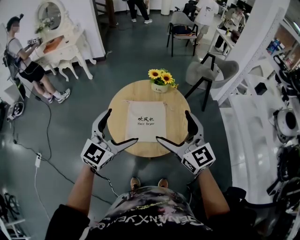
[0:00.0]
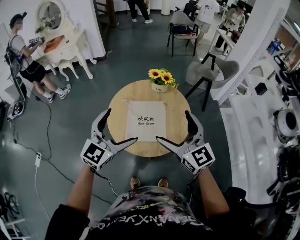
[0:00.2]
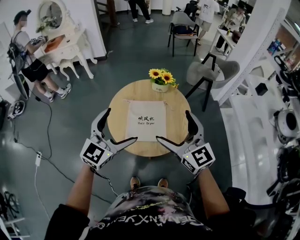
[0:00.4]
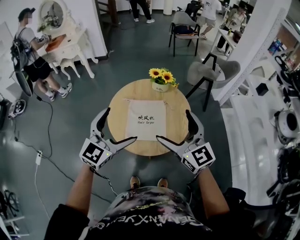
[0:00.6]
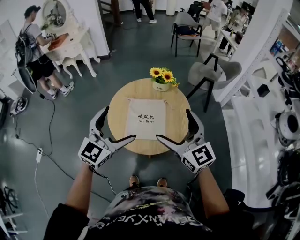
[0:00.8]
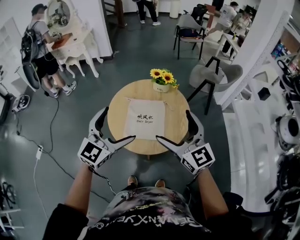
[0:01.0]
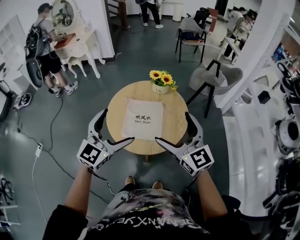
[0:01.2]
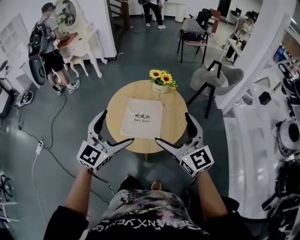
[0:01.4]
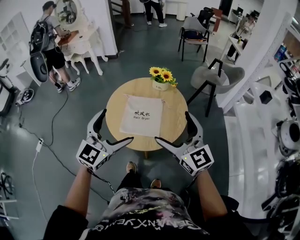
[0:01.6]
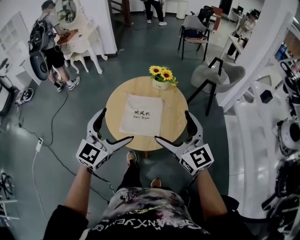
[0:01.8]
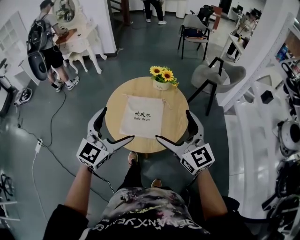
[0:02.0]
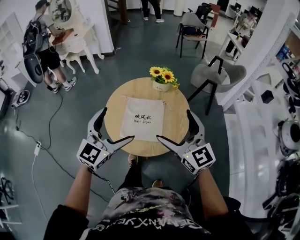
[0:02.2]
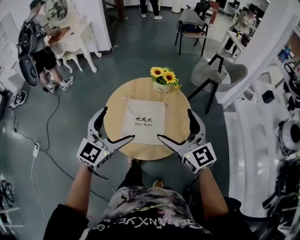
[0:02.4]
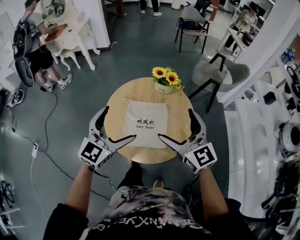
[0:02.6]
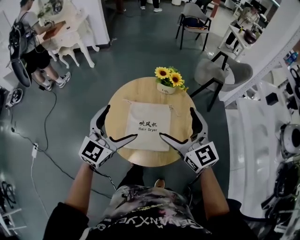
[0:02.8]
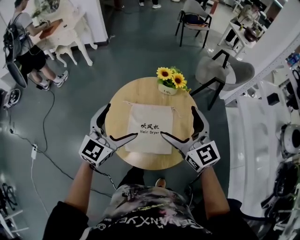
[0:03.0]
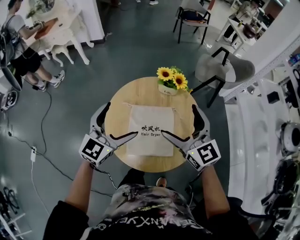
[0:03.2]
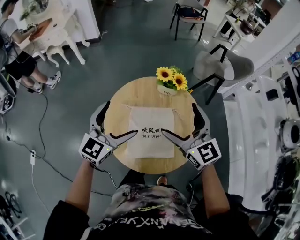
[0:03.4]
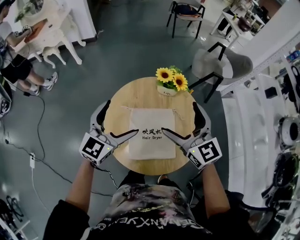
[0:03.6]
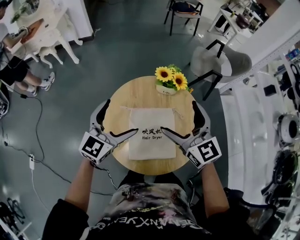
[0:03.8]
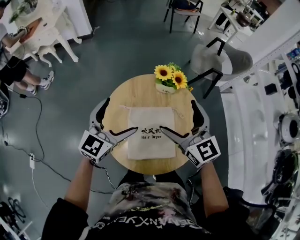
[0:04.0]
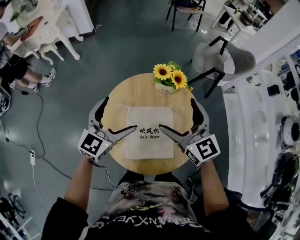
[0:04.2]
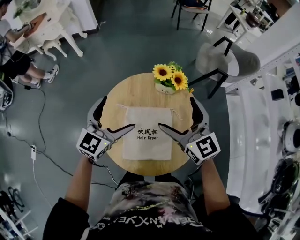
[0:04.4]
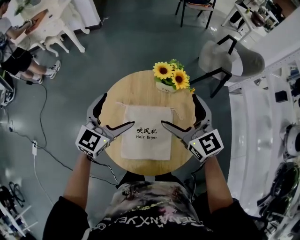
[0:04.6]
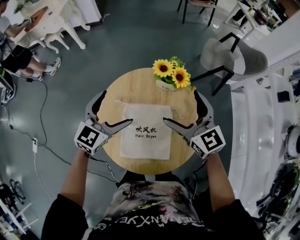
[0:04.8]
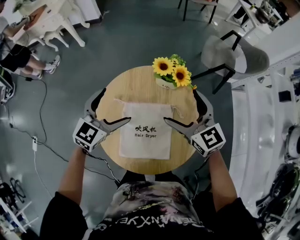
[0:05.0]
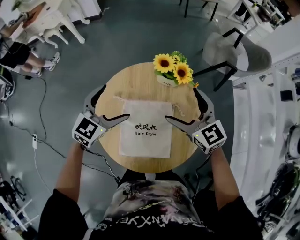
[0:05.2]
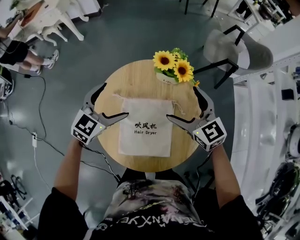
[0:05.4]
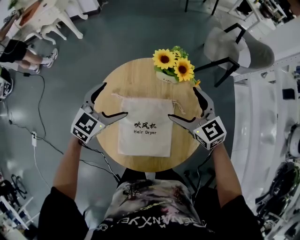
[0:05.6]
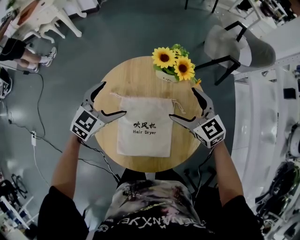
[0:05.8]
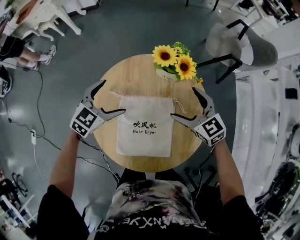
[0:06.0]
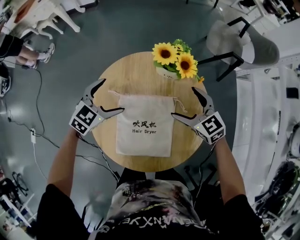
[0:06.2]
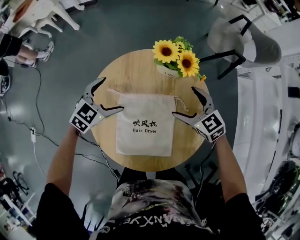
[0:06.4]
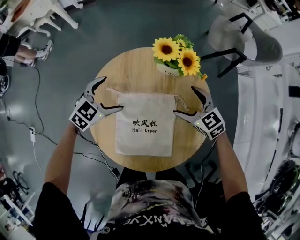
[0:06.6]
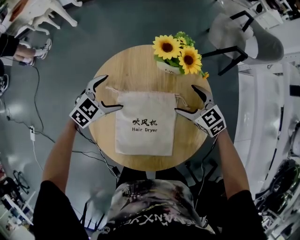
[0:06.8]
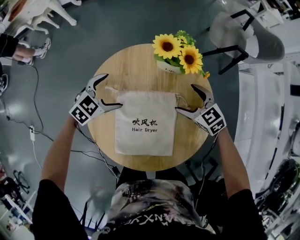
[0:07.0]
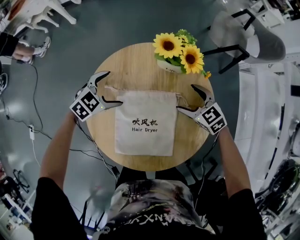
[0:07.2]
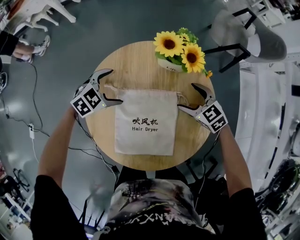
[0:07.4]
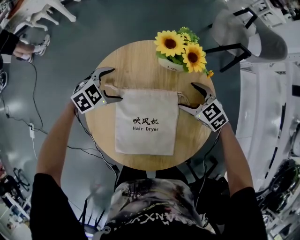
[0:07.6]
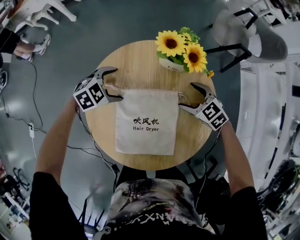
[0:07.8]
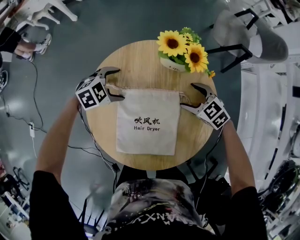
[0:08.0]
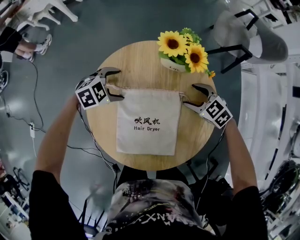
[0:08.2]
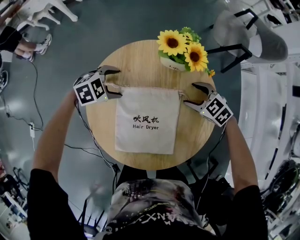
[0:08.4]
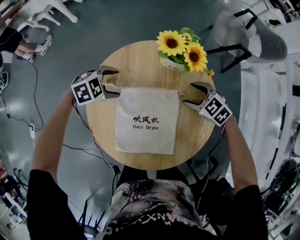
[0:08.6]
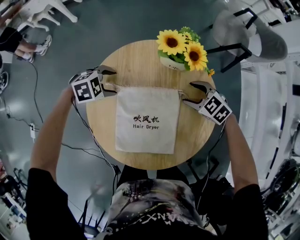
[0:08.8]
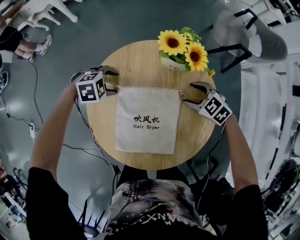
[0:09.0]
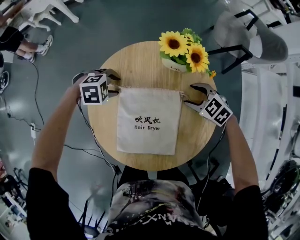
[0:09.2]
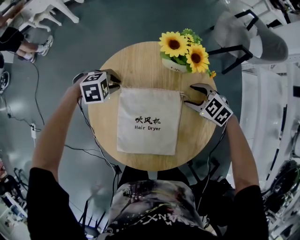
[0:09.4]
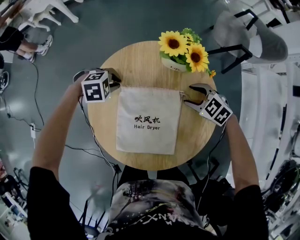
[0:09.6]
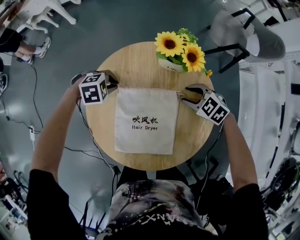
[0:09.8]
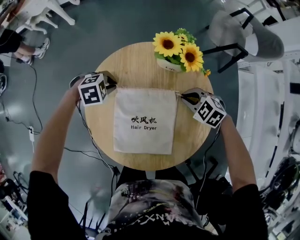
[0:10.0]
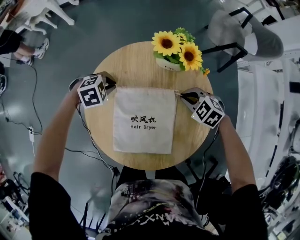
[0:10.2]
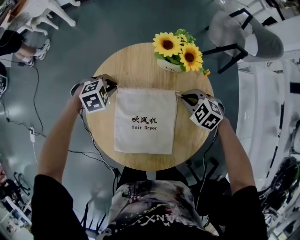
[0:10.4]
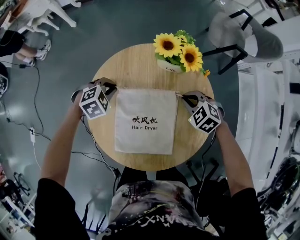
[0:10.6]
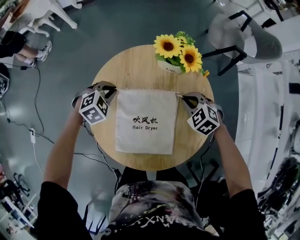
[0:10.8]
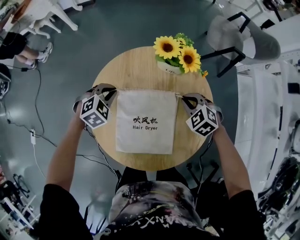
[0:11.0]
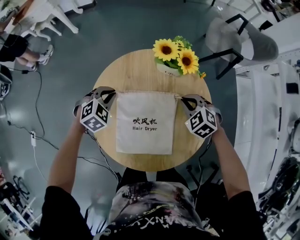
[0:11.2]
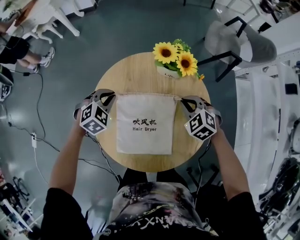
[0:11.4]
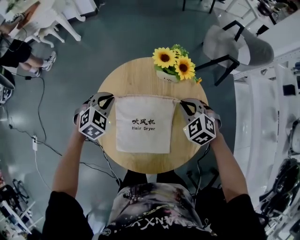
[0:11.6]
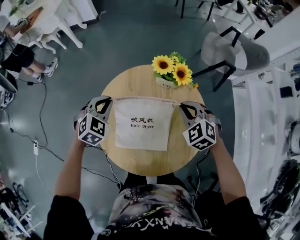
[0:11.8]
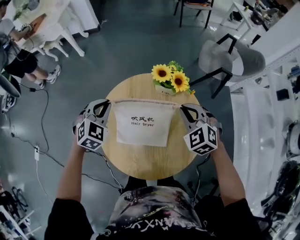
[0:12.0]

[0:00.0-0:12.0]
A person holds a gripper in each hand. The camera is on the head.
0:00.0 to 0:01.6: The right gripper goes roughly 5 cm to the right. Meanwhile the left gripper travels backward by some 5 cm.
0:01.6 to 0:03.0: The grippers both shift forward by some 20 cm.
0:03.0 to 0:04.4: The left gripper travels forward and downward by approximately 15 cm, while the right gripper travels forward by roughly 10 cm.
0:04.4 to 0:06.0: Both grippers travel together downward, some 15 cm. The left gripper changes its angle by roughly 30 degrees; the right gripper changes its angle by roughly 20 degrees.
0:06.0 to 0:07.6: The two grippers go approximately 10 cm downward. The left gripper changes its angle by about 30 degrees.
0:07.6 to 0:09.0: The left gripper changes its angle by approximately 20 degrees, and closes its fingers.
0:09.0 to 0:10.4: The left gripper closes its fingers, while the right gripper closes its fingers.
0:10.4 to 0:12.0: Both grippers move upward, some 20 cm. The left gripper tilts its fingers roughly 30 degrees upward. Meanwhile the right gripper turns by approximately 30 degrees.

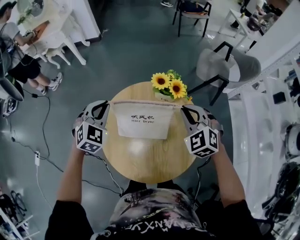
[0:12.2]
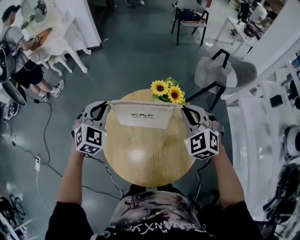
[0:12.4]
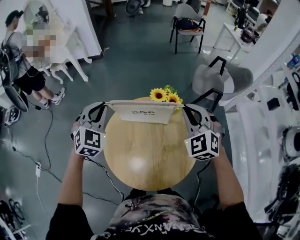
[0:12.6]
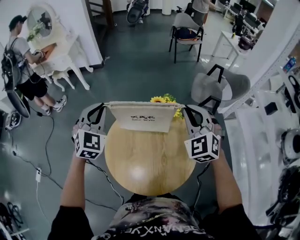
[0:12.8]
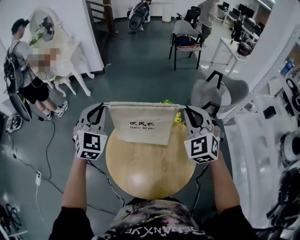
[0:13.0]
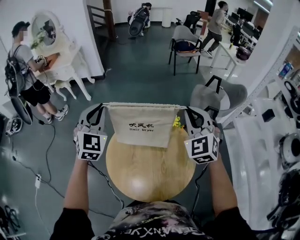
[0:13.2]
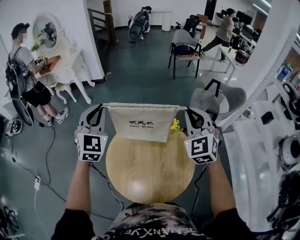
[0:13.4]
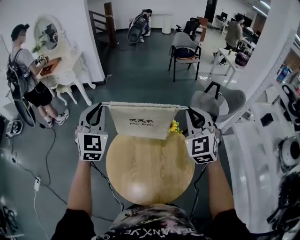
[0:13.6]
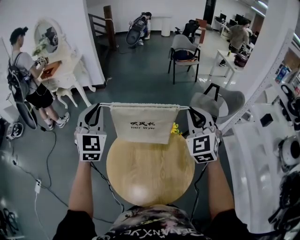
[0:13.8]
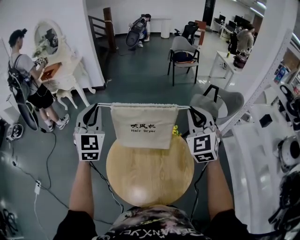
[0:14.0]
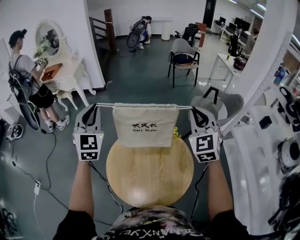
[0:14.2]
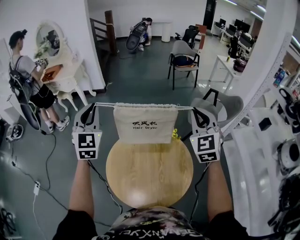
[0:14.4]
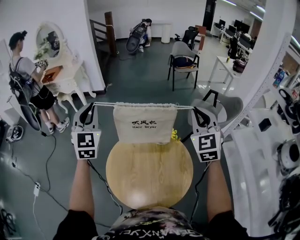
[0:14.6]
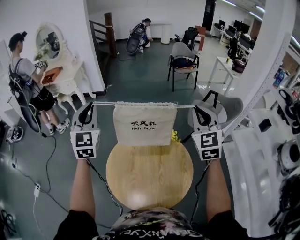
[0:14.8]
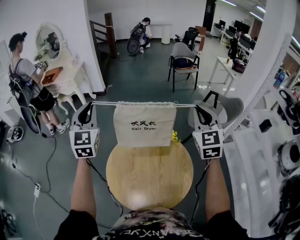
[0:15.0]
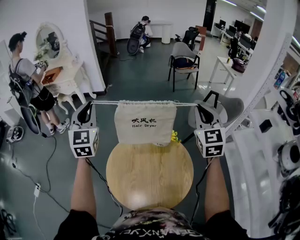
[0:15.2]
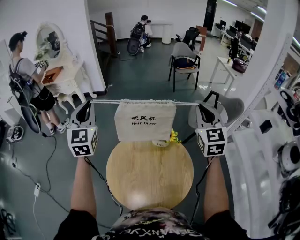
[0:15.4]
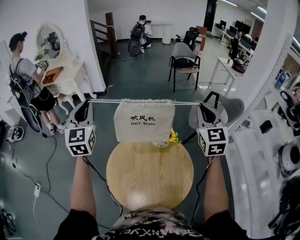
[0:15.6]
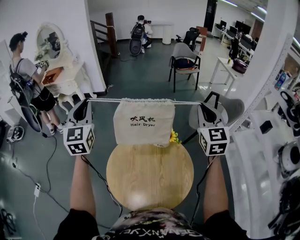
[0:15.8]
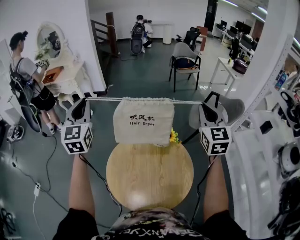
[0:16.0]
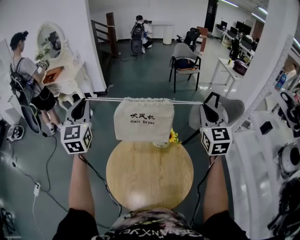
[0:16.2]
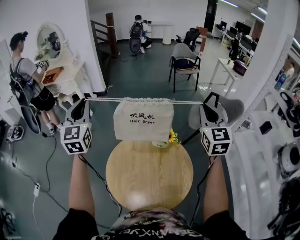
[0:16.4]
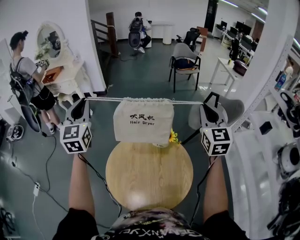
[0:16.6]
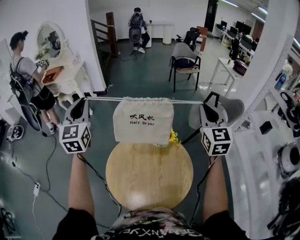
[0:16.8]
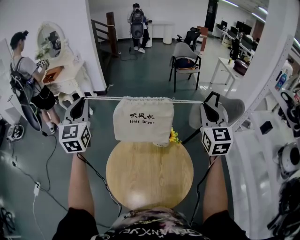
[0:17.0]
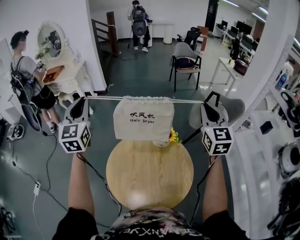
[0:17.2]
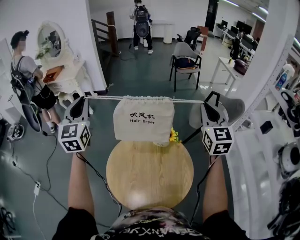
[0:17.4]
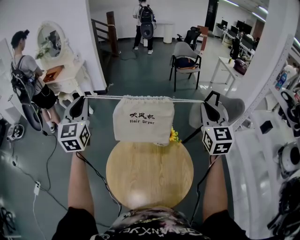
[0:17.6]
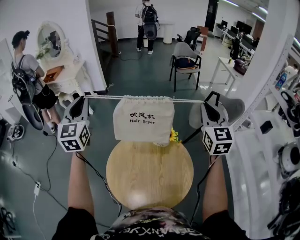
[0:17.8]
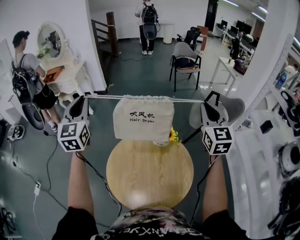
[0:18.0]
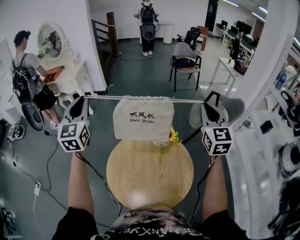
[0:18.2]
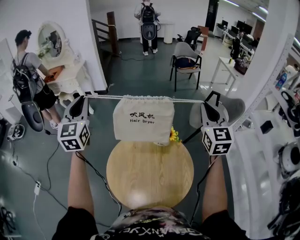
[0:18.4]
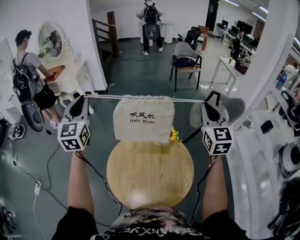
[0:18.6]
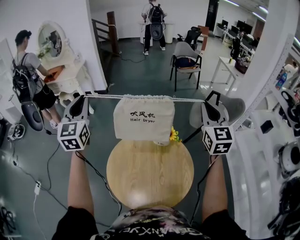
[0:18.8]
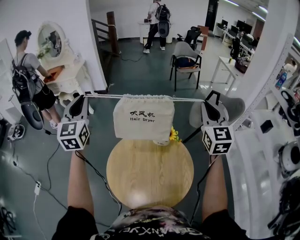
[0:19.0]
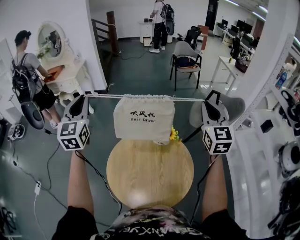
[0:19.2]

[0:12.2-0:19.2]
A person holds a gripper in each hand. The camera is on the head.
0:12.2 to 0:13.6: The two grippers go about 25 cm upward. The right gripper turns by about 30 degrees; the left gripper tilts its fingers approximately 30 degrees upward.
0:13.6 to 0:15.0: The right gripper shifts by some 5 cm, while the left gripper changes place by some 5 cm.
0:15.0 to 0:16.4: The grippers move only a little.
0:16.4 to 0:17.8: The two grippers keep their place.
0:17.8 to 0:19.2: Both grippers stay put.

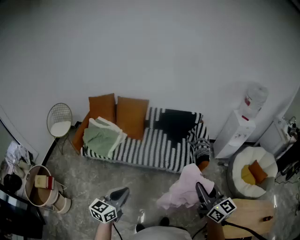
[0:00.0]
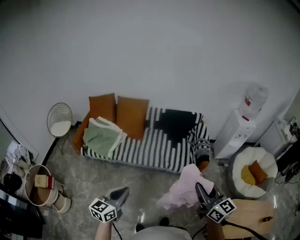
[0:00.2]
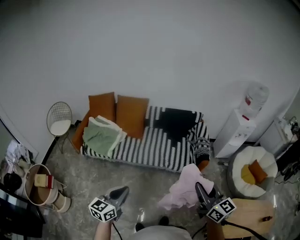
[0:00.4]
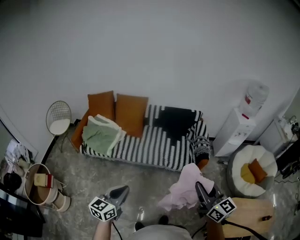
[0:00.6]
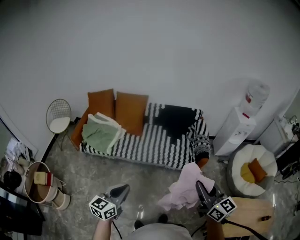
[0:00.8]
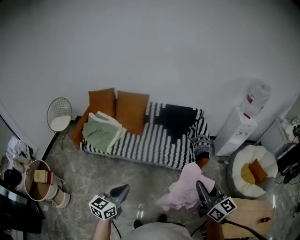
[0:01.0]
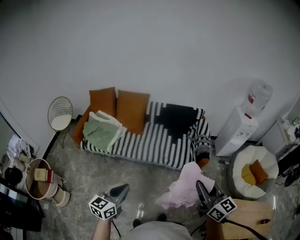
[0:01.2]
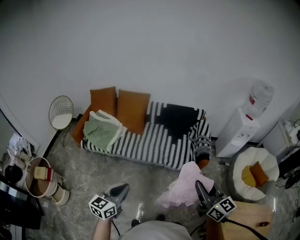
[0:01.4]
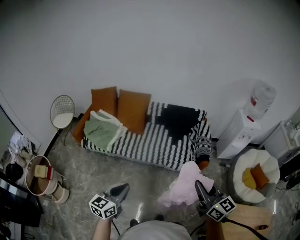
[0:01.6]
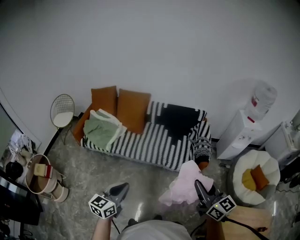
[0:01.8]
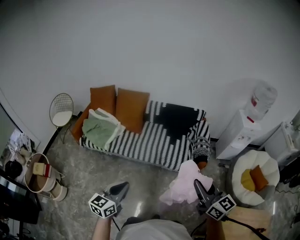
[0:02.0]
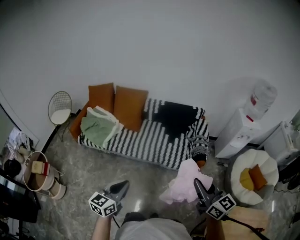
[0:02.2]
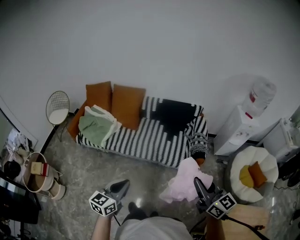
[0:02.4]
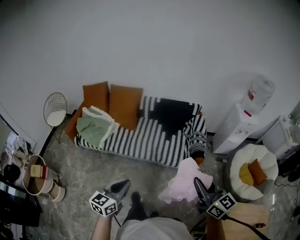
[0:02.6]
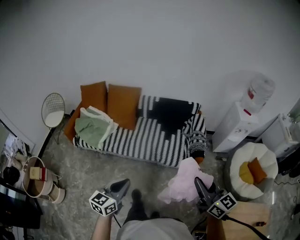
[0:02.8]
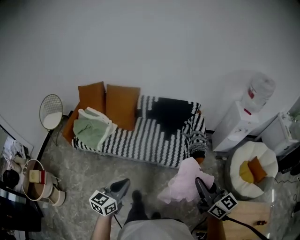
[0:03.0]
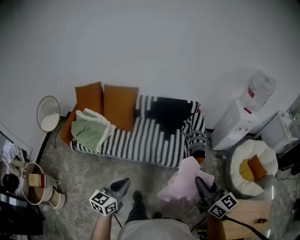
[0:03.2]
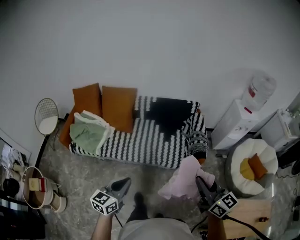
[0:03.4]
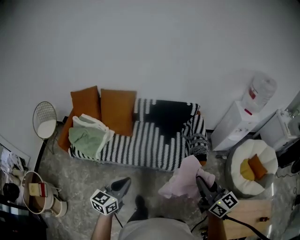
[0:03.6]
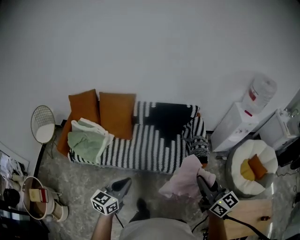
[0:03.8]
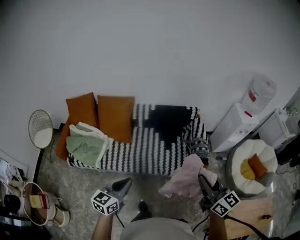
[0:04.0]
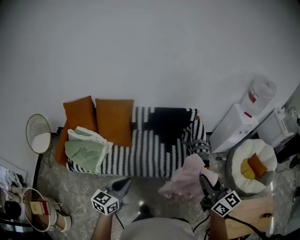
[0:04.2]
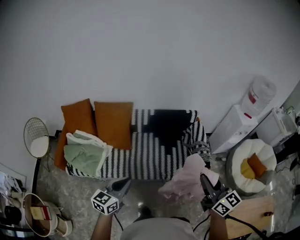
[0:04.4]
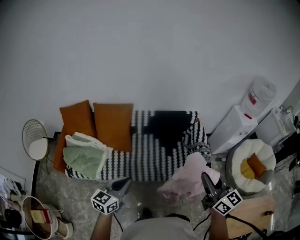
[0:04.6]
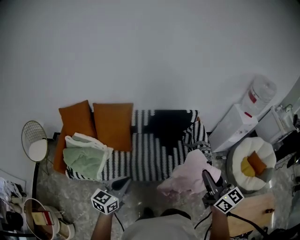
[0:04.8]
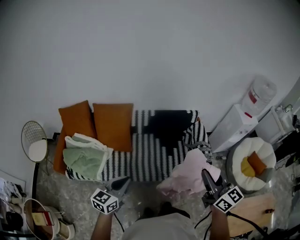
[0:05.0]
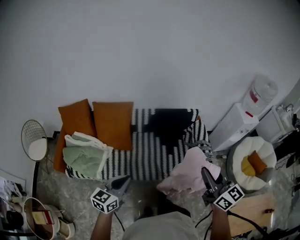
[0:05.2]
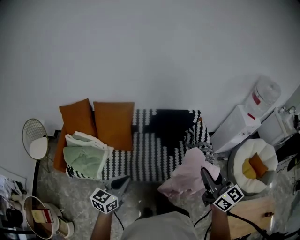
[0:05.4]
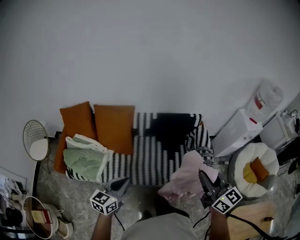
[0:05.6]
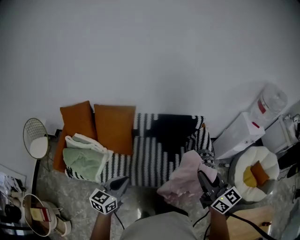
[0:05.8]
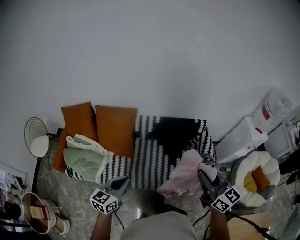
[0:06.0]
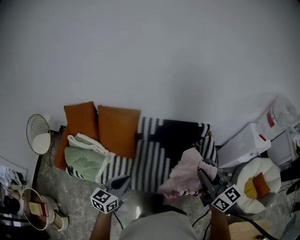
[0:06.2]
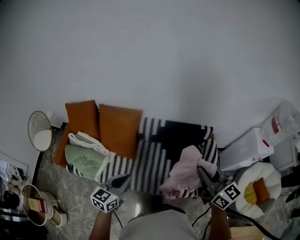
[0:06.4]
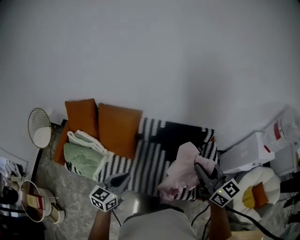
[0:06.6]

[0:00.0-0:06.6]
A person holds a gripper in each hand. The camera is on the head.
0:00.0 to 0:01.6: Both grippers travel together to the right, approximately 5 cm.
0:01.6 to 0:03.2: The grippers both shift forward by some 15 cm.
0:03.2 to 0:05.0: Both grippers travel together forward and to the left, roughly 30 cm.
0:05.0 to 0:06.6: Both grippers travel together forward, about 25 cm.
